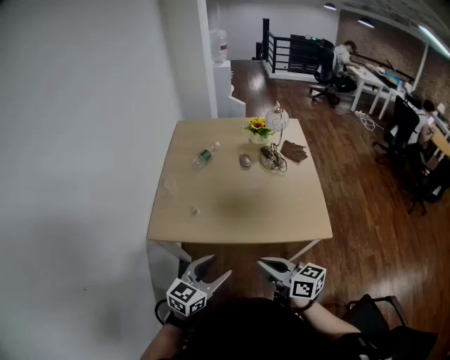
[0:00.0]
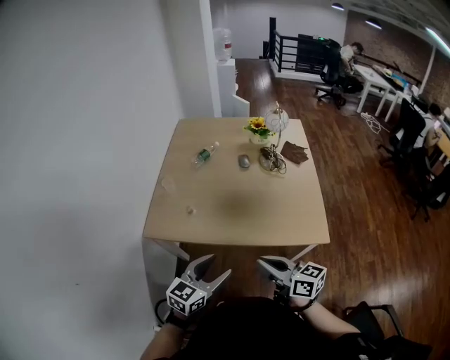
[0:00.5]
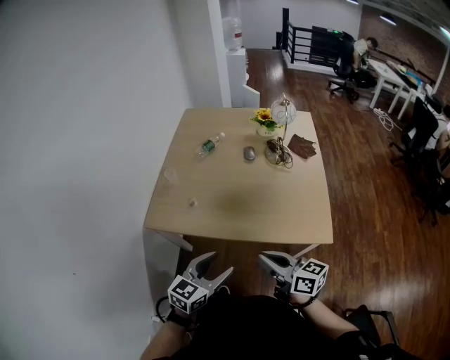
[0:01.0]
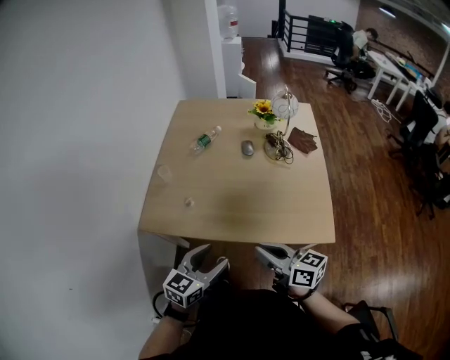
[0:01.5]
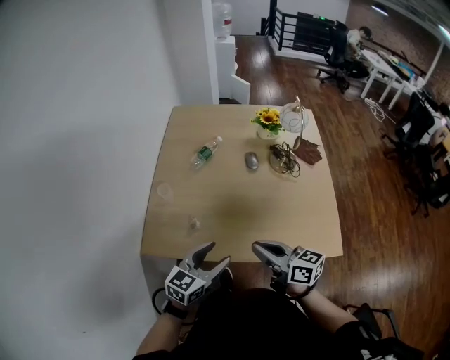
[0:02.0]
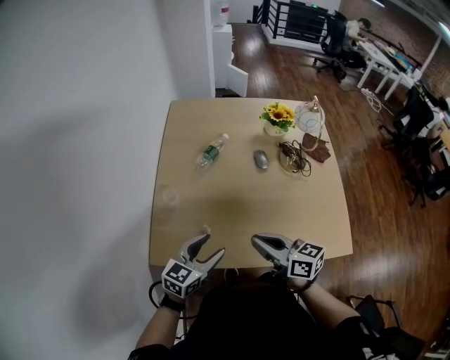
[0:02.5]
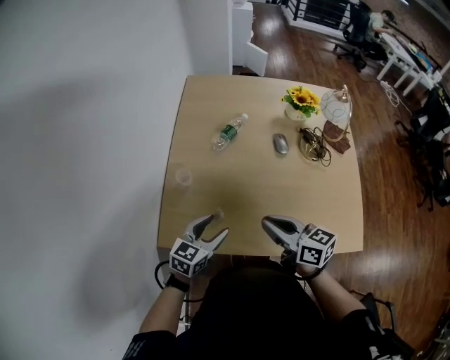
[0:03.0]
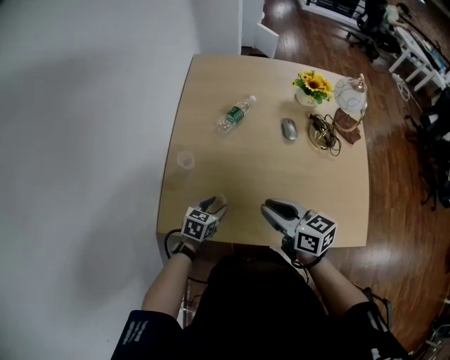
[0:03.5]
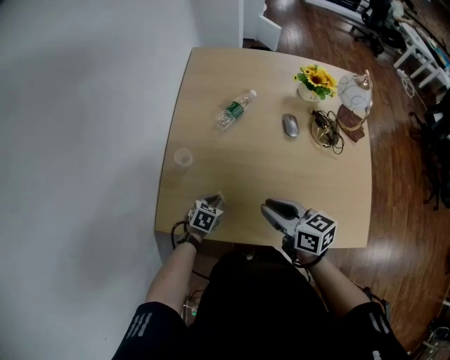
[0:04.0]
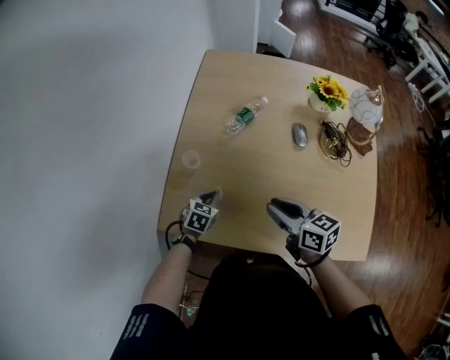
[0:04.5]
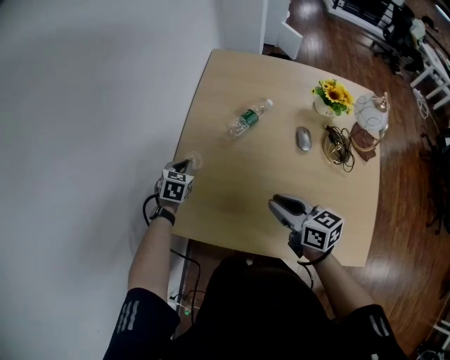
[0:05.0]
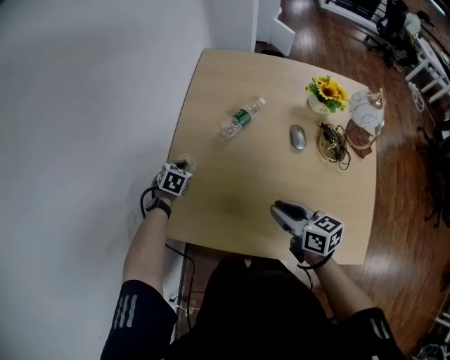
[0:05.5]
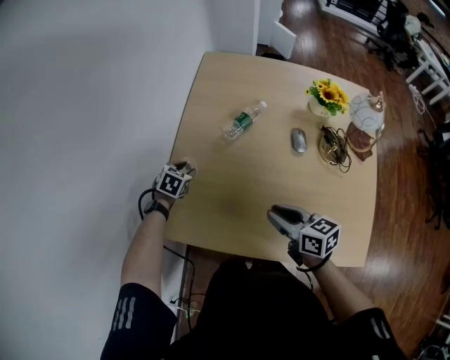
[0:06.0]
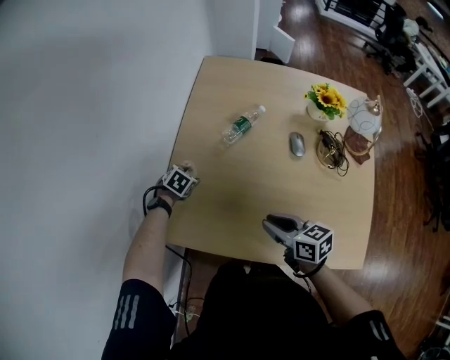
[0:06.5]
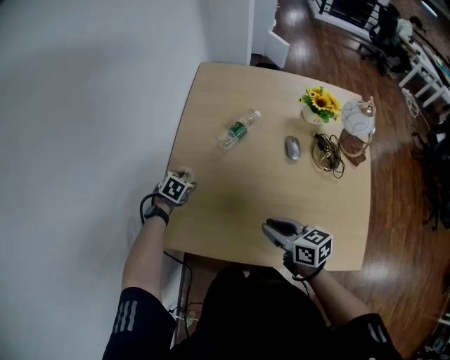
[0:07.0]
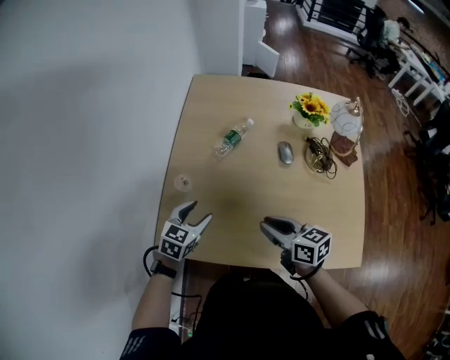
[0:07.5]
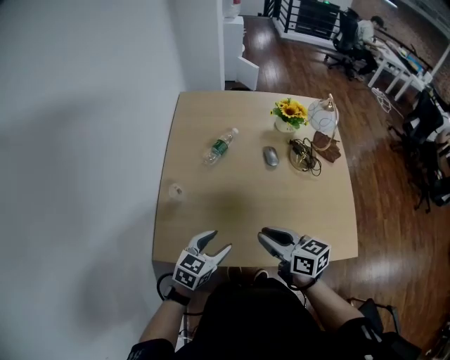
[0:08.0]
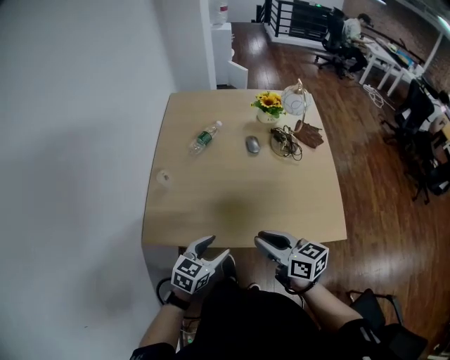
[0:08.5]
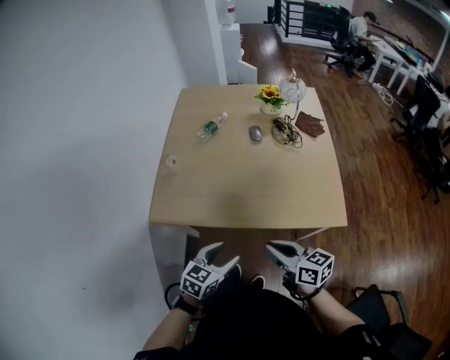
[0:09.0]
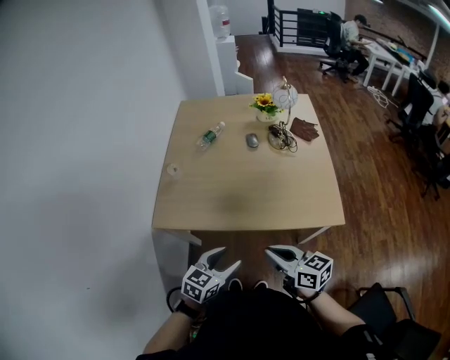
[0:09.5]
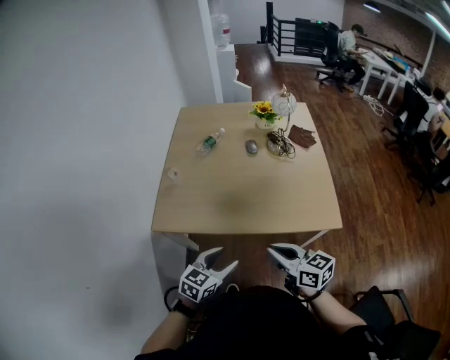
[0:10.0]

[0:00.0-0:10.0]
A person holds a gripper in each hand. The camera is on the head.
0.0 to 2.0 s: Both grippers move forward, roughly 20 cm.
2.0 to 4.0 s: The right gripper goes roughly 20 cm forward, downward and to the left. The left gripper is displaced downward, forward and to the left by approximately 35 cm, points its fingers approximately 40 degrees further downward, and closes up.
4.0 to 6.0 s: The left gripper travels forward and to the left by some 20 cm, and opens.
6.0 to 8.0 s: The right gripper shifts about 10 cm backward and upward, while the left gripper is displaced backward, to the right and upward by roughly 30 cm, swivels about 30 degrees, and opens its fingers.
8.0 to 10.0 s: The grippers both shift backward by approximately 25 cm.

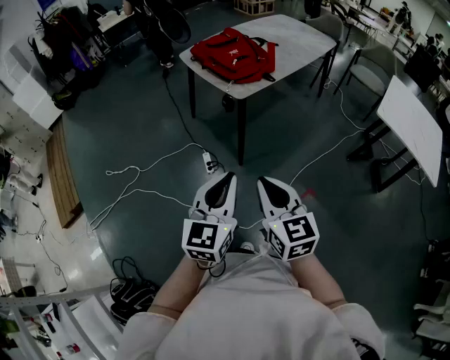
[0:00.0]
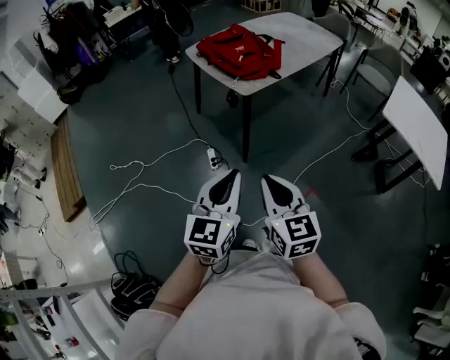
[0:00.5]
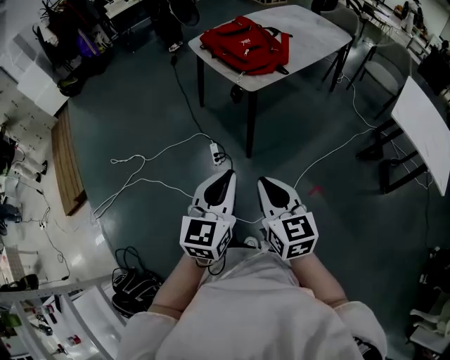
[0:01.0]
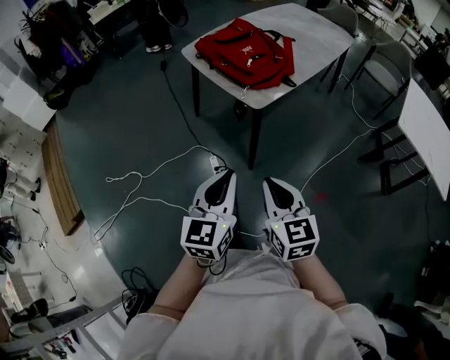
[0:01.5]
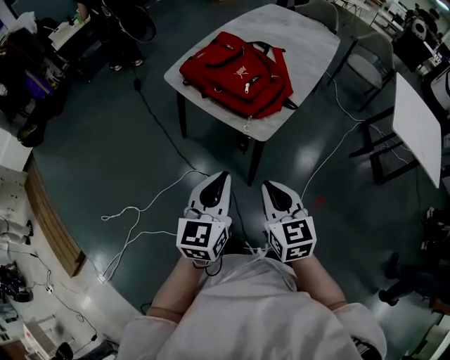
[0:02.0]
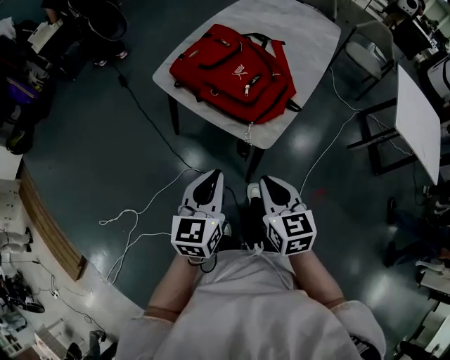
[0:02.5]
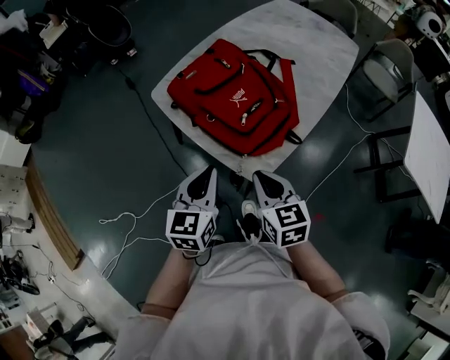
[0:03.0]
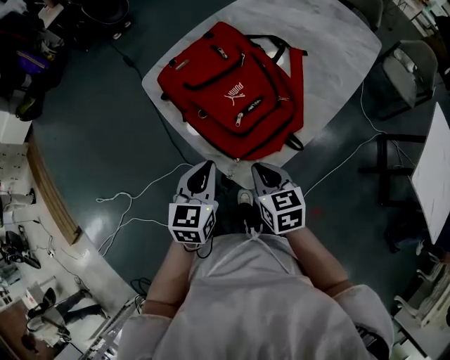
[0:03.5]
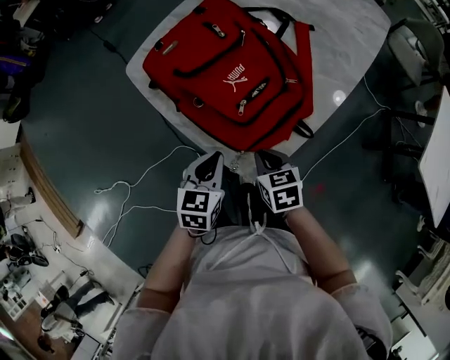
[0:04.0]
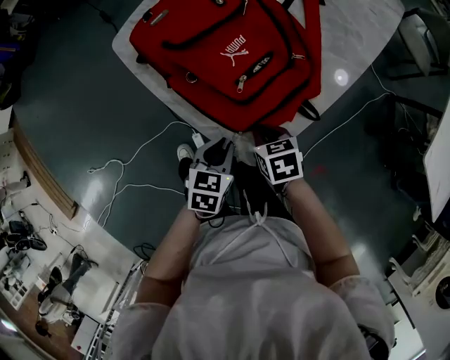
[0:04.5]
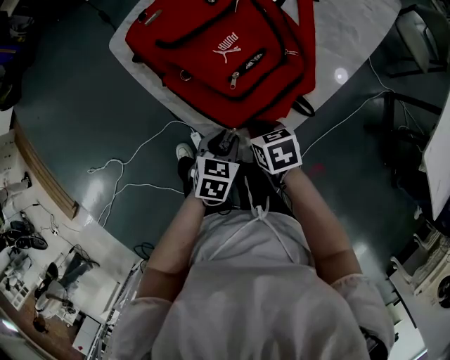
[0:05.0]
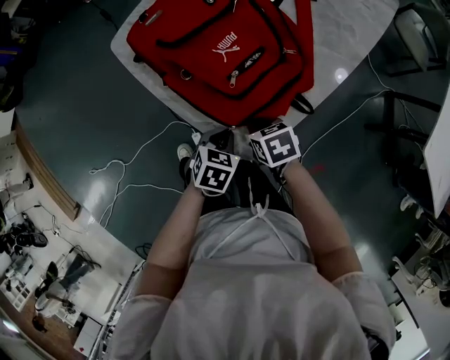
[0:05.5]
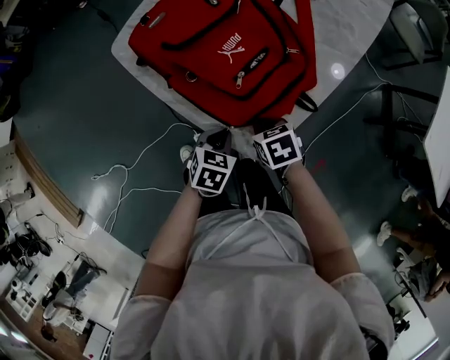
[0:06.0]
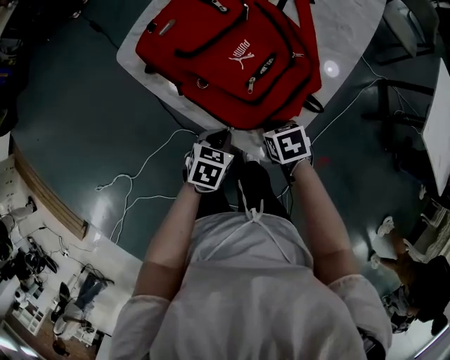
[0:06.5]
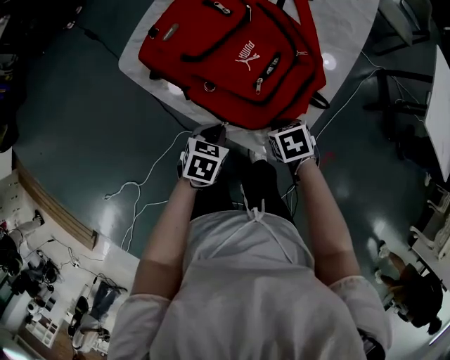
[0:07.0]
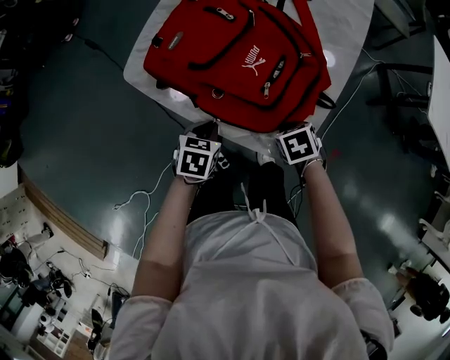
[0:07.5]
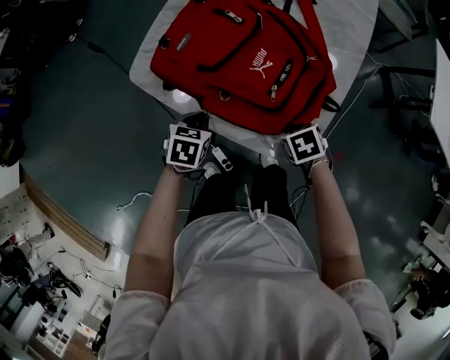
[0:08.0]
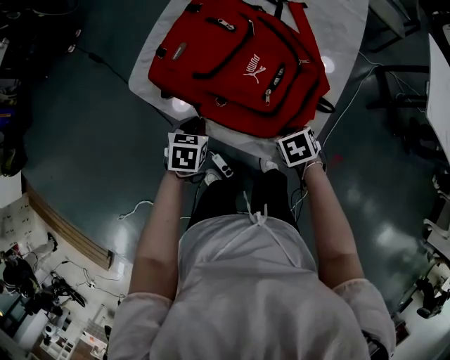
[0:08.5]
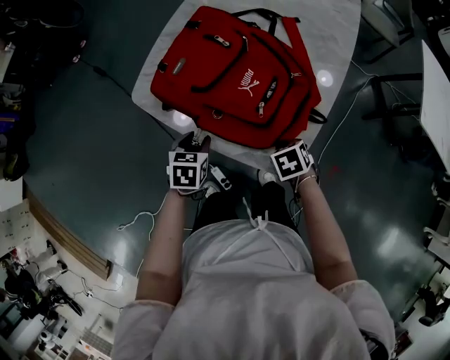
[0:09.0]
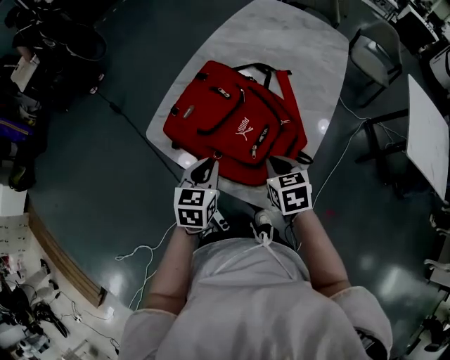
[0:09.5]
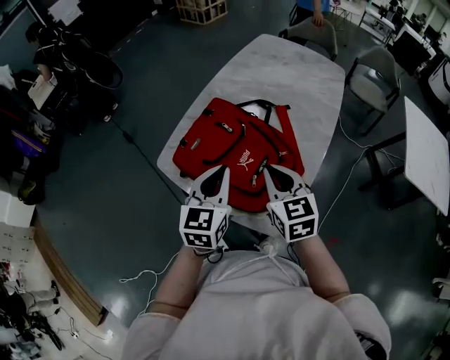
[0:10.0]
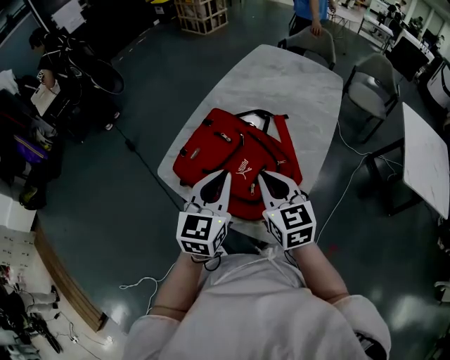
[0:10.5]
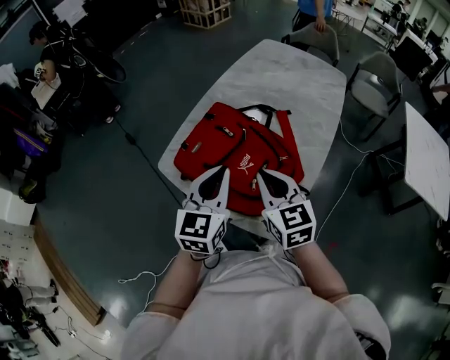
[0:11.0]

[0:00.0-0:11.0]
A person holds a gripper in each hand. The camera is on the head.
0.0 to 2.0 s: The left gripper is displaced forward and to the left by some 35 cm, while the right gripper shifts some 30 cm forward.
2.0 to 3.5 s: Both grippers travel together forward, roughly 30 cm. The right gripper changes its angle by about 20 degrees.
3.5 to 5.5 s: The grippers both shift downward by some 15 cm. The left gripper rotates some 40 degrees, and opens, then closes again. The right gripper rotates some 30 degrees.
5.5 to 7.5 s: The left gripper ends up approximately 15 cm from where it was; the right gripper turns by roughly 20 degrees.
7.5 to 9.0 s: The left gripper ends up some 5 cm from where it was, and opens up.
9.0 to 11.0 s: Both grippers move upward, approximately 30 cm. The left gripper points its fingers roughly 40 degrees further upward, and closes. Meanwhile the right gripper tips its fingers upward by about 50 degrees.

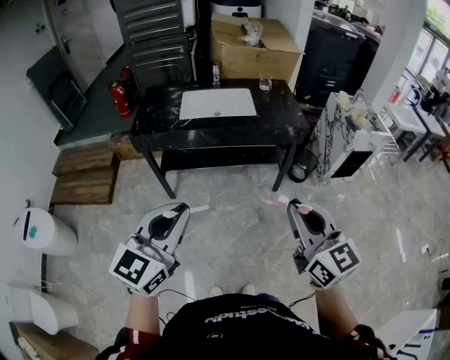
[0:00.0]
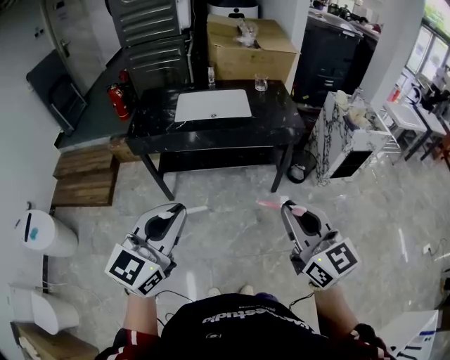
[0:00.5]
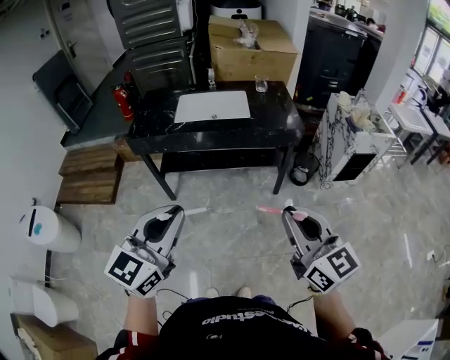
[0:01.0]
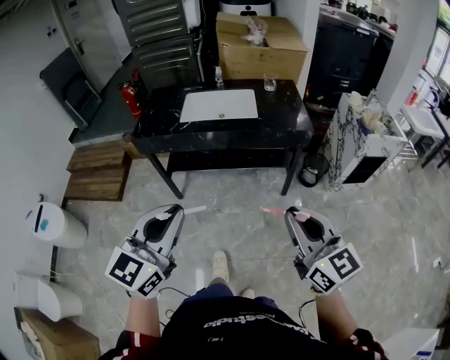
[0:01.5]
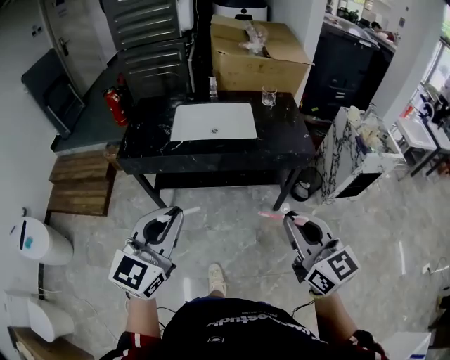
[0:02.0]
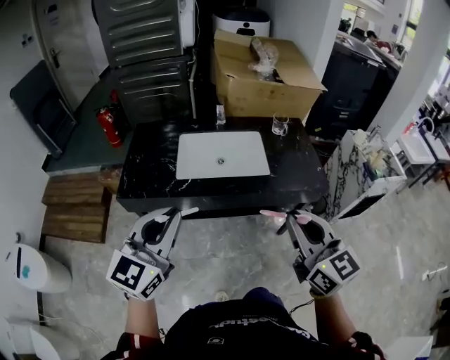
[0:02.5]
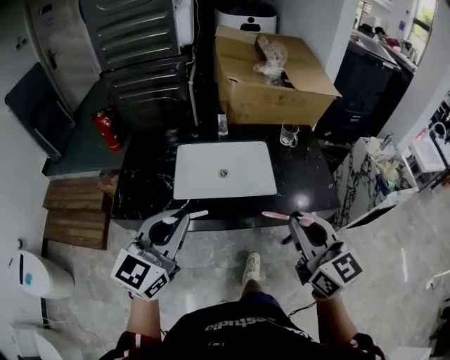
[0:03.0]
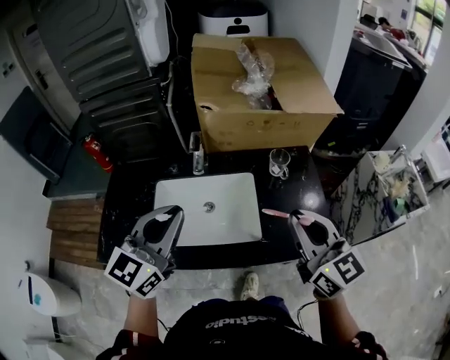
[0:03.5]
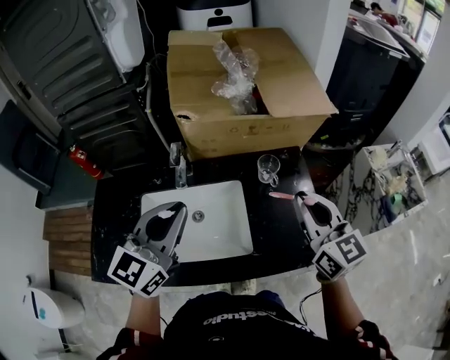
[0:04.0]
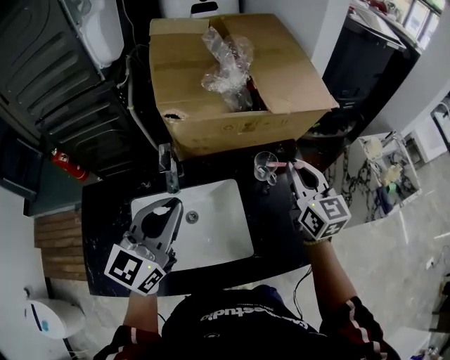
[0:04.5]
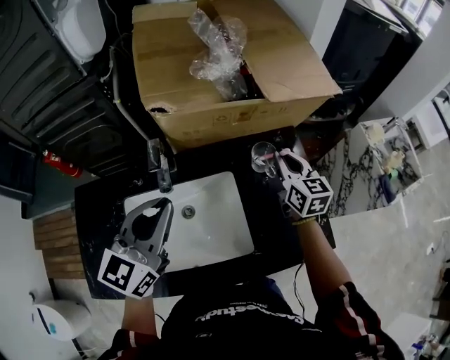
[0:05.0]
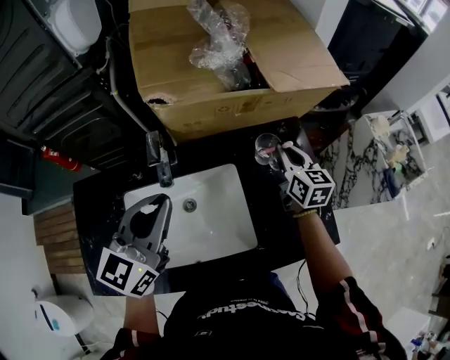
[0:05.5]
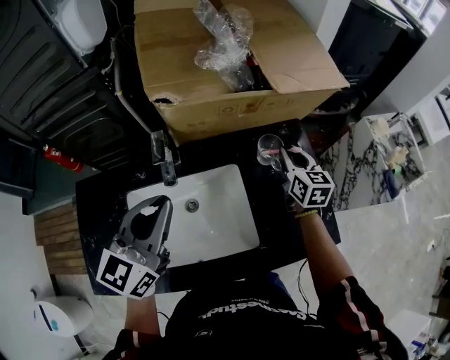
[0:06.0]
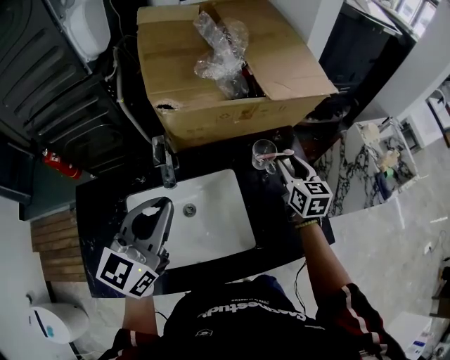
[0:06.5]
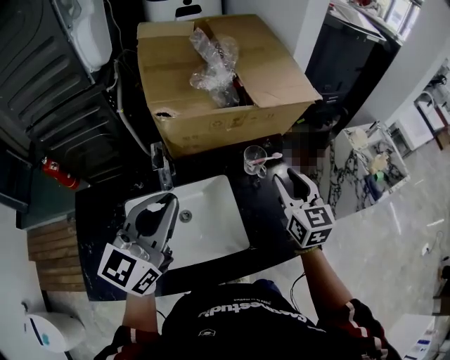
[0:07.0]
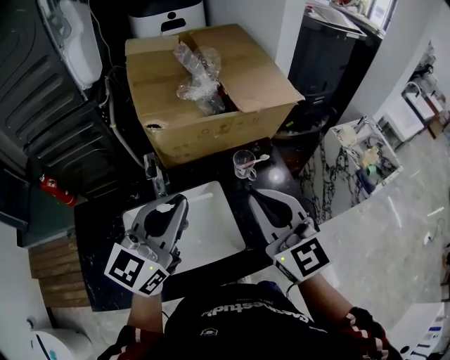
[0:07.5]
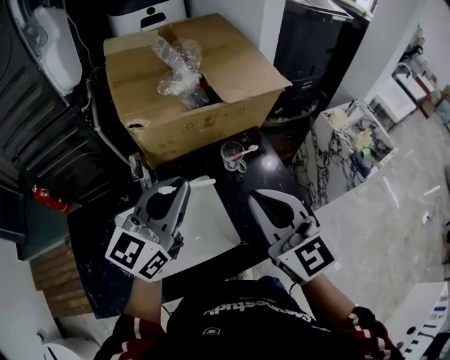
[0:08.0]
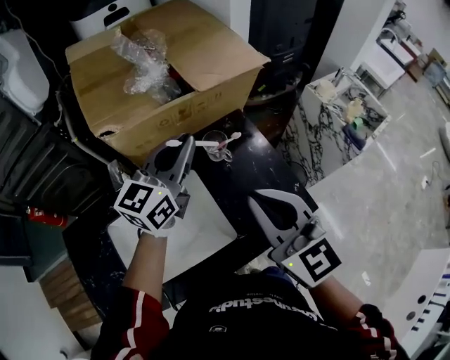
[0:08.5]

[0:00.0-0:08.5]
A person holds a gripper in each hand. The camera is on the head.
0.0 to 2.0 s: The two grippers go some 15 cm forward.
2.0 to 4.0 s: The pair of grippers is taken forward, about 60 cm.
4.0 to 6.5 s: The right gripper goes approximately 25 cm downward and forward, rotates some 30 degrees, and opens. The left gripper goes some 5 cm forward.
6.5 to 8.5 s: The right gripper shifts approximately 25 cm backward and upward, changes its angle by some 20 degrees, and closes its fingers; the left gripper goes roughly 20 cm to the right and forward, and turns by roughly 20 degrees.
